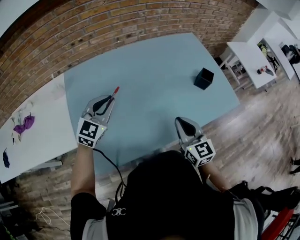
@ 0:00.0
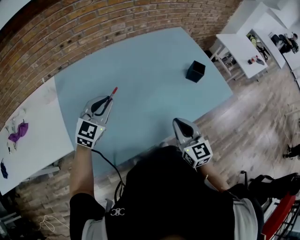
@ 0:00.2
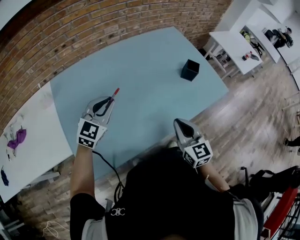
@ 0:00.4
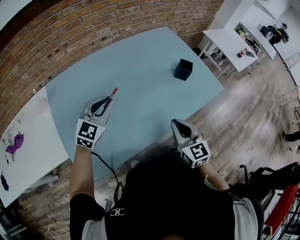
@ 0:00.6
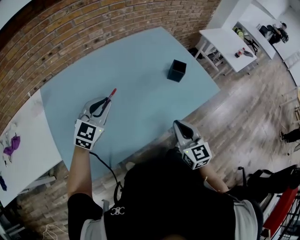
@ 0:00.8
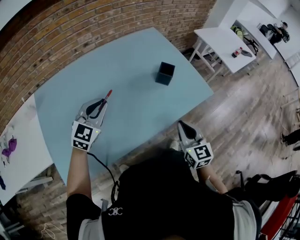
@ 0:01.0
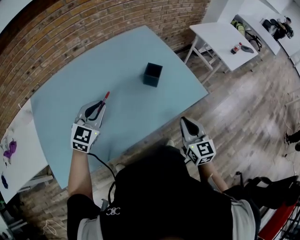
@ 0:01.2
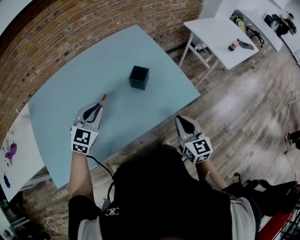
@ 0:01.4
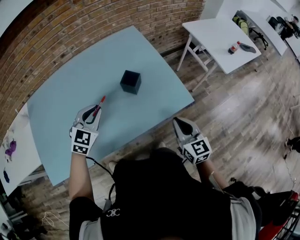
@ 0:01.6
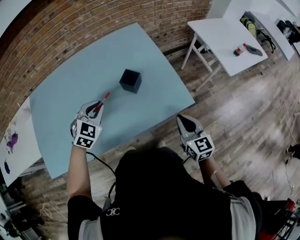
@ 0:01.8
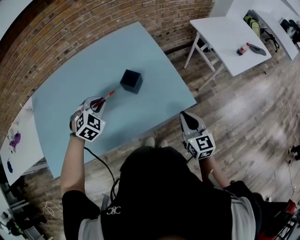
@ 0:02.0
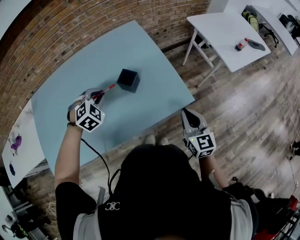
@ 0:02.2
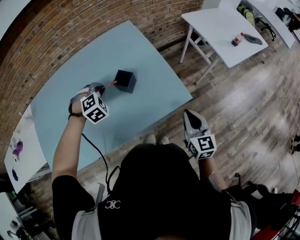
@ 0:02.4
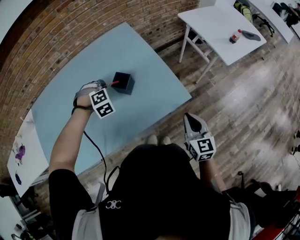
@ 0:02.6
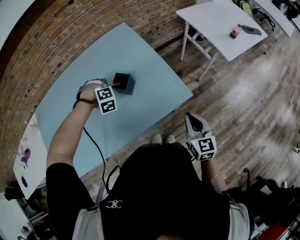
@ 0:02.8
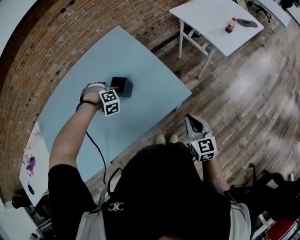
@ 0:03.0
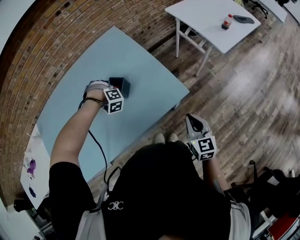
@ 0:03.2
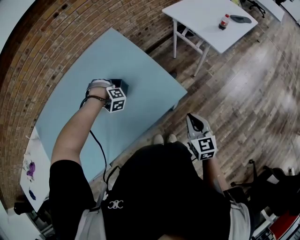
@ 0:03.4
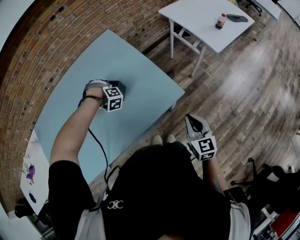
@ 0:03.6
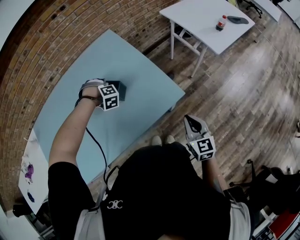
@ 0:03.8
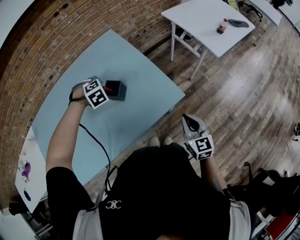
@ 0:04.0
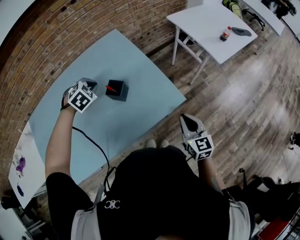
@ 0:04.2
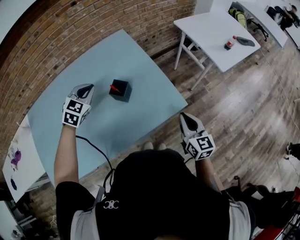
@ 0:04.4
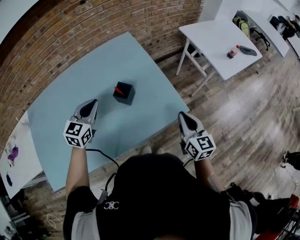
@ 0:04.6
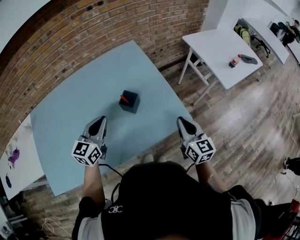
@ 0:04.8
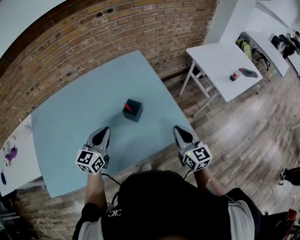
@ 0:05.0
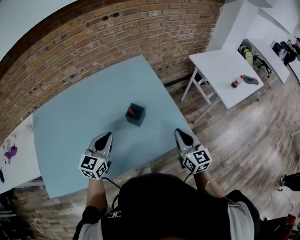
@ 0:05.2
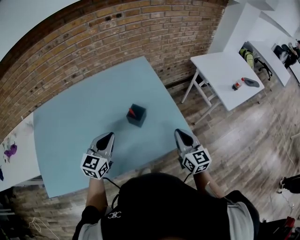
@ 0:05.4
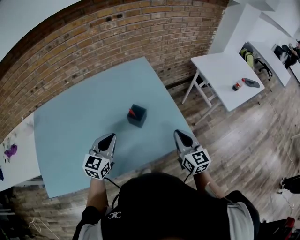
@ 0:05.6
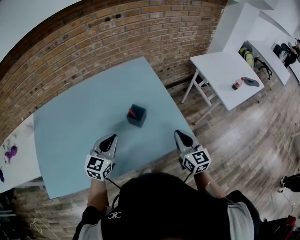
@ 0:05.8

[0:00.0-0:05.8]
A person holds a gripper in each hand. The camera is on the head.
0:00.0 to 0:01.4: The grippers both shift to the right by approximately 35 cm.
0:01.4 to 0:02.8: The right gripper changes place by roughly 15 cm; the left gripper ends up some 20 cm from where it was, and changes its angle by some 80 degrees.
0:02.8 to 0:04.4: The left gripper moves upward, approximately 10 cm, and swivels about 70 degrees.
0:04.4 to 0:05.8: The right gripper is displaced to the left and forward by approximately 10 cm, while the left gripper travels backward by about 15 cm, and changes its angle by approximately 30 degrees.

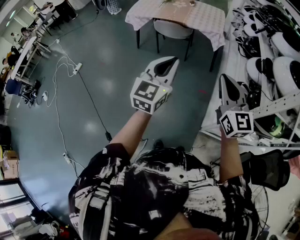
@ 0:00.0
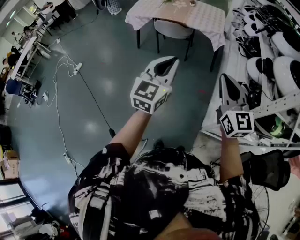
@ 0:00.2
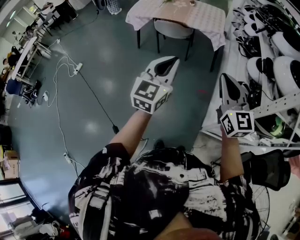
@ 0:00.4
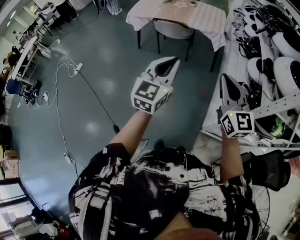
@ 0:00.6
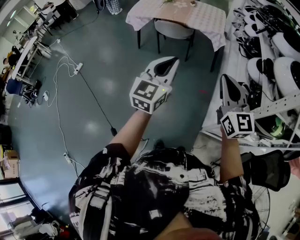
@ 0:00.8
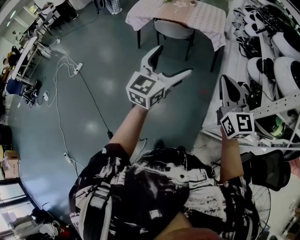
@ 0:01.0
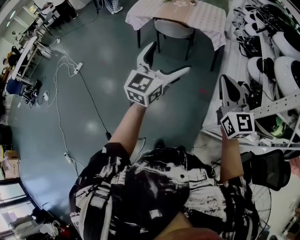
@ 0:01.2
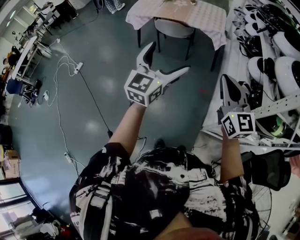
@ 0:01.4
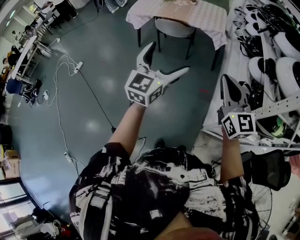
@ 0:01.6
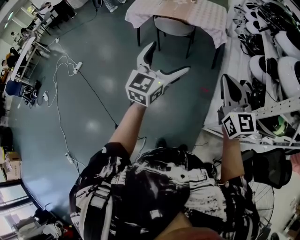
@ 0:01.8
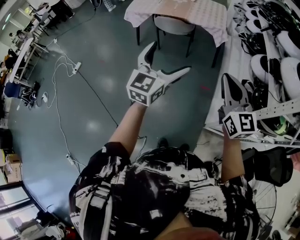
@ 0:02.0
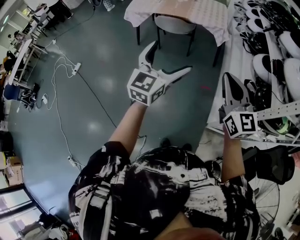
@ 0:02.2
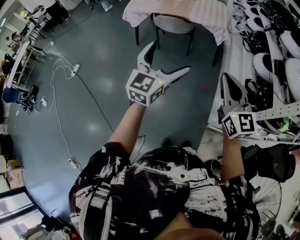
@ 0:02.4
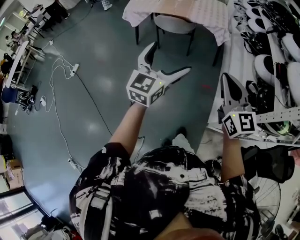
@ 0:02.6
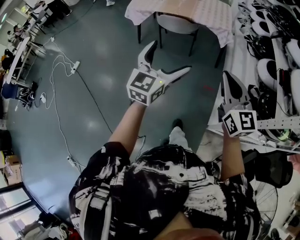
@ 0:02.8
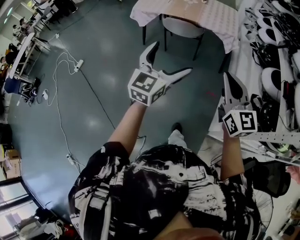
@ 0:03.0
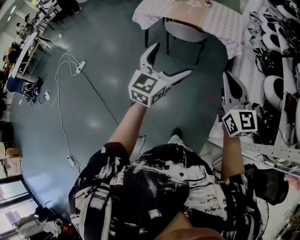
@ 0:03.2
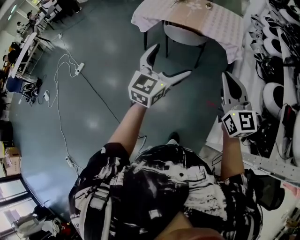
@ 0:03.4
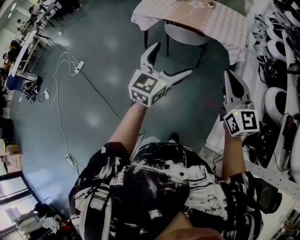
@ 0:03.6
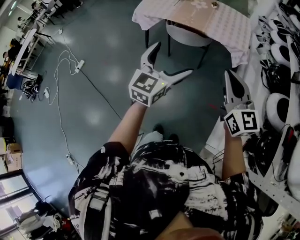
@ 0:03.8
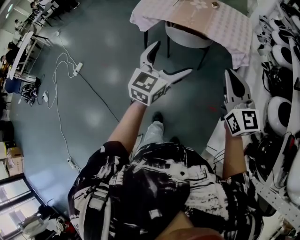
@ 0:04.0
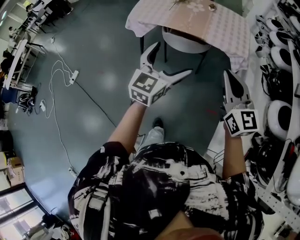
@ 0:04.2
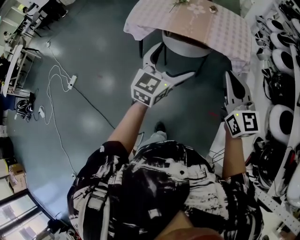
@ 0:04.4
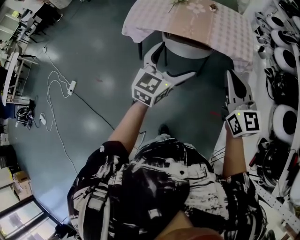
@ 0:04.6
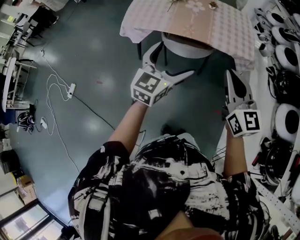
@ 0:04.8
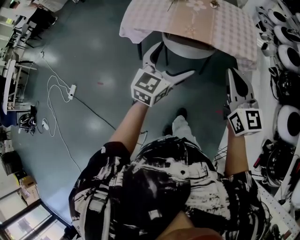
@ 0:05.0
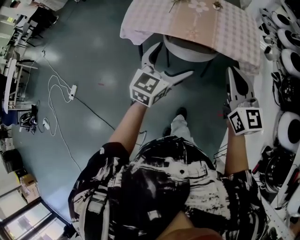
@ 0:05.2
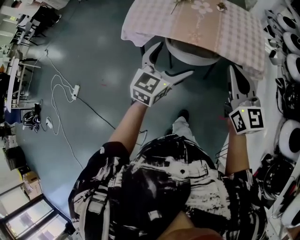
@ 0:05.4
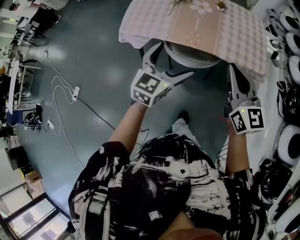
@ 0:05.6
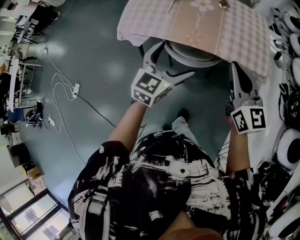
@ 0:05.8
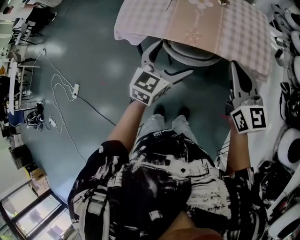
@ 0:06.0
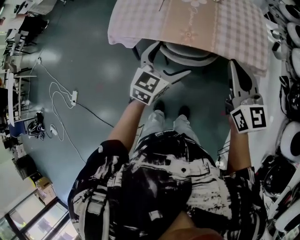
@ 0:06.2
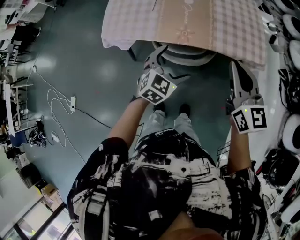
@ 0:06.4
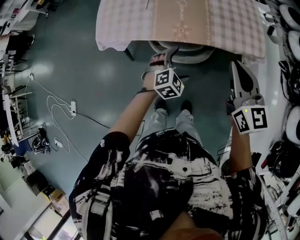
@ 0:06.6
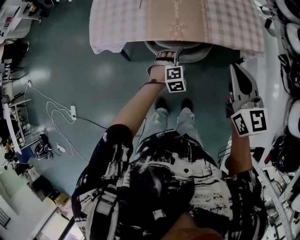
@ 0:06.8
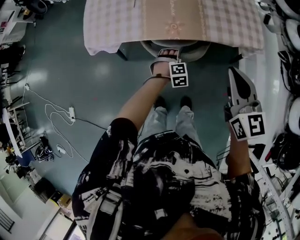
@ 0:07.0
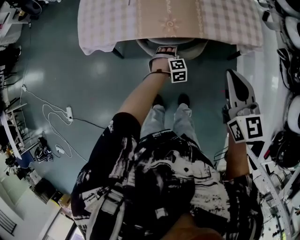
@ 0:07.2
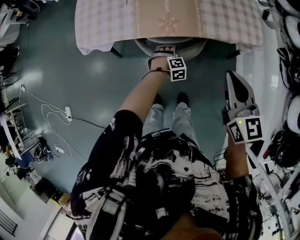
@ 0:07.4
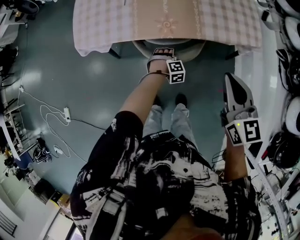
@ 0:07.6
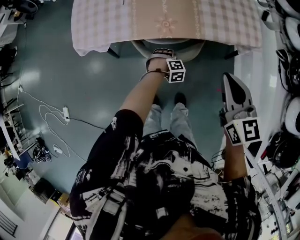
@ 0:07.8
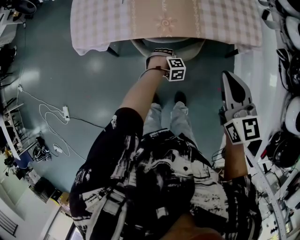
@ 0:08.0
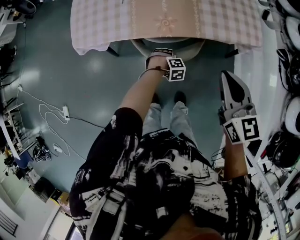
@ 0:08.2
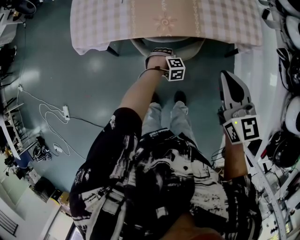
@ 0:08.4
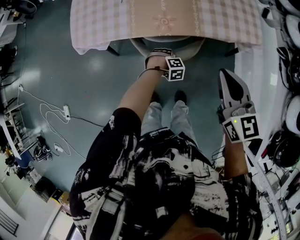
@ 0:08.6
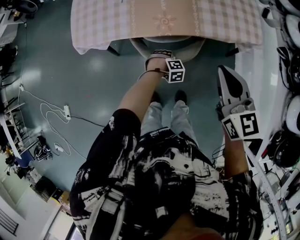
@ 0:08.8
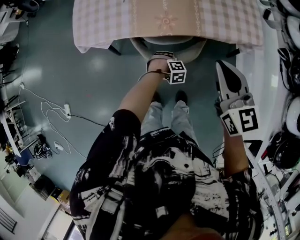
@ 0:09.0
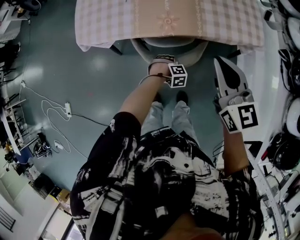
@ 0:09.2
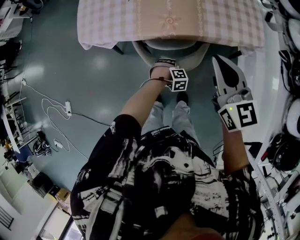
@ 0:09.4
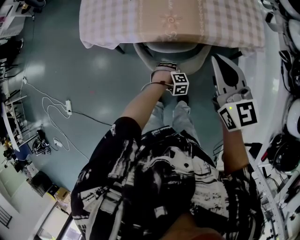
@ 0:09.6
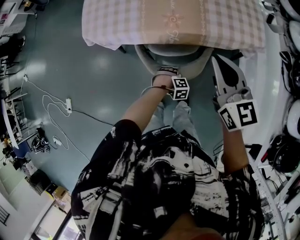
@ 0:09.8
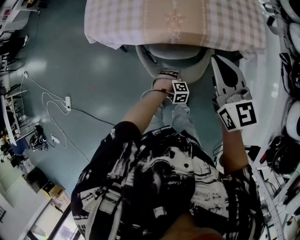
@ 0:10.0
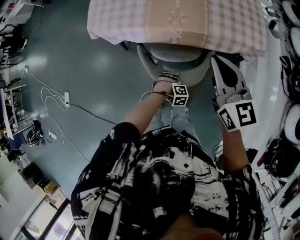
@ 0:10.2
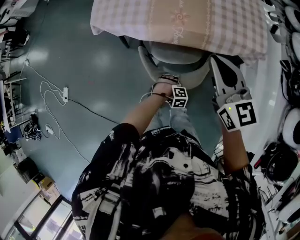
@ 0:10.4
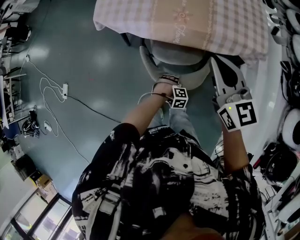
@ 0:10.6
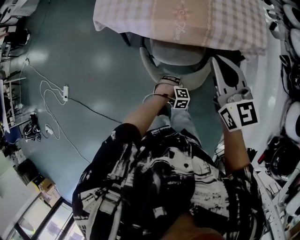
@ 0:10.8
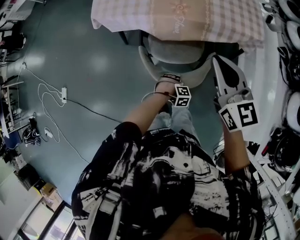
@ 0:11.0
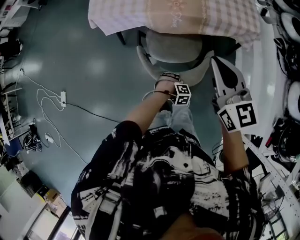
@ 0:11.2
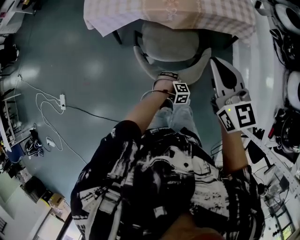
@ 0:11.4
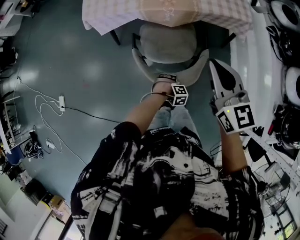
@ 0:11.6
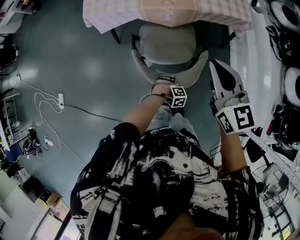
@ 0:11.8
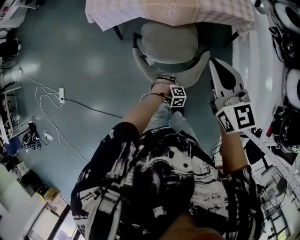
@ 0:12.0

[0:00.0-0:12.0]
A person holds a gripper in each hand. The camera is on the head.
0:00.0 to 0:01.6: The left gripper opens.
0:01.6 to 0:03.0: Both grippers travel together forward and to the left, approximately 15 cm.
0:03.0 to 0:04.4: Both grippers move forward, roughly 35 cm.
0:04.4 to 0:06.0: The two grippers go roughly 30 cm forward.
0:06.0 to 0:07.6: The right gripper heads downward, covering roughly 10 cm, and turns by some 20 degrees. Meanwhile the left gripper travels downward by approximately 40 cm, tips its fingers downward by roughly 50 degrees, and closes its fingers.
0:07.6 to 0:09.0: The left gripper closes up.
0:09.0 to 0:10.4: The right gripper moves approximately 10 cm; the left gripper ends up roughly 20 cm from where it was.
0:10.4 to 0:12.0: The right gripper moves about 20 cm. The left gripper moves some 20 cm.

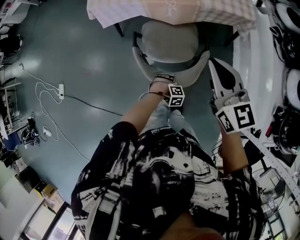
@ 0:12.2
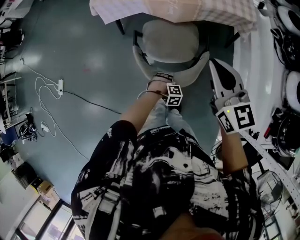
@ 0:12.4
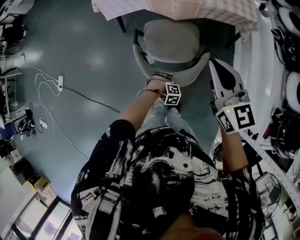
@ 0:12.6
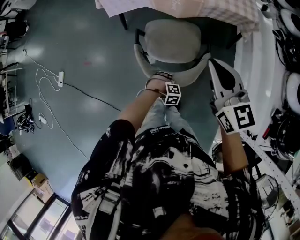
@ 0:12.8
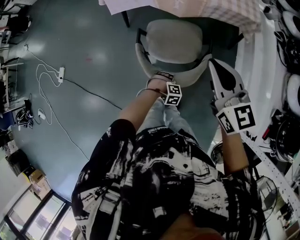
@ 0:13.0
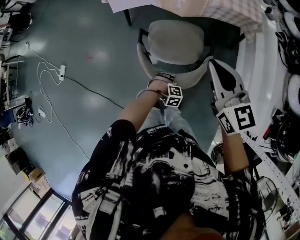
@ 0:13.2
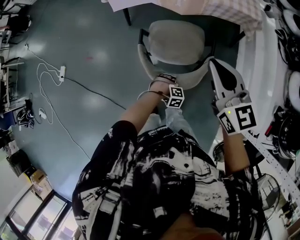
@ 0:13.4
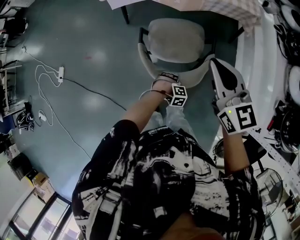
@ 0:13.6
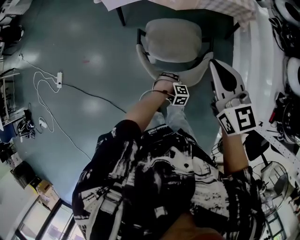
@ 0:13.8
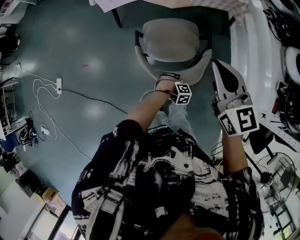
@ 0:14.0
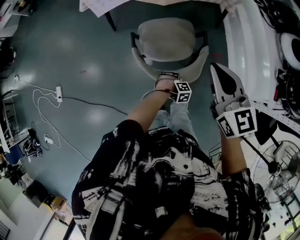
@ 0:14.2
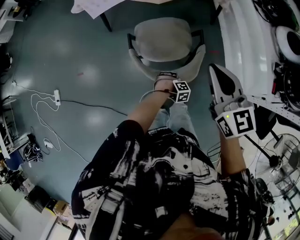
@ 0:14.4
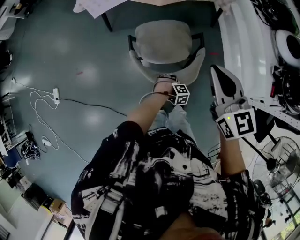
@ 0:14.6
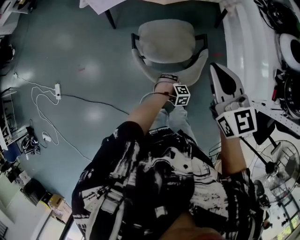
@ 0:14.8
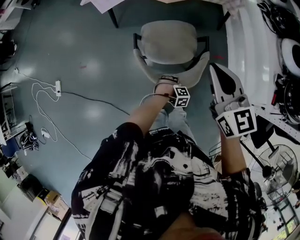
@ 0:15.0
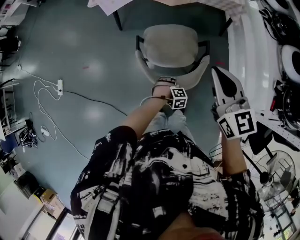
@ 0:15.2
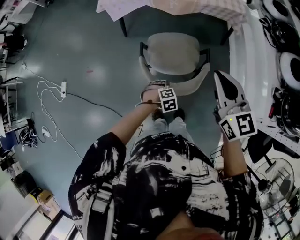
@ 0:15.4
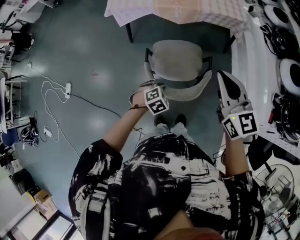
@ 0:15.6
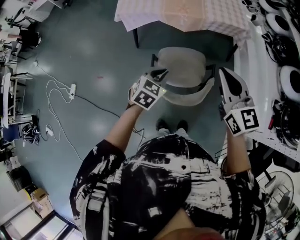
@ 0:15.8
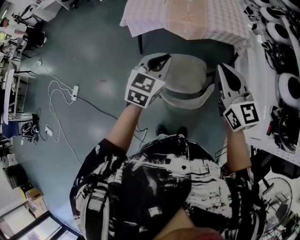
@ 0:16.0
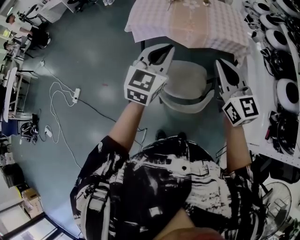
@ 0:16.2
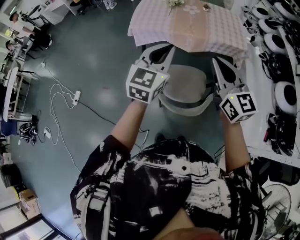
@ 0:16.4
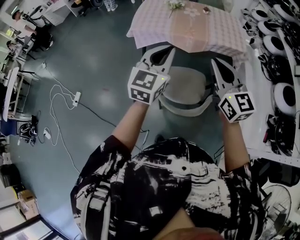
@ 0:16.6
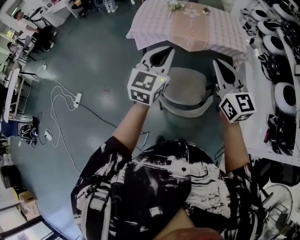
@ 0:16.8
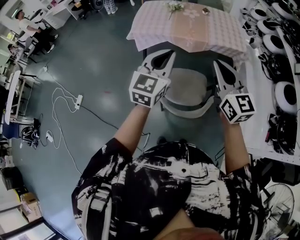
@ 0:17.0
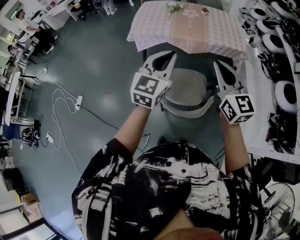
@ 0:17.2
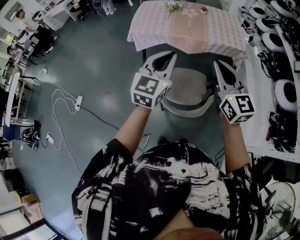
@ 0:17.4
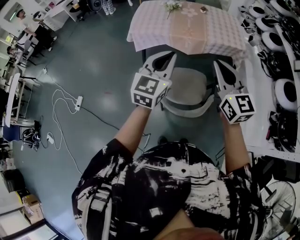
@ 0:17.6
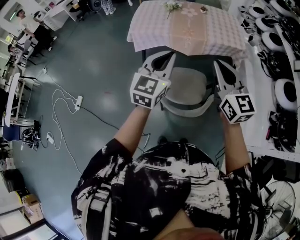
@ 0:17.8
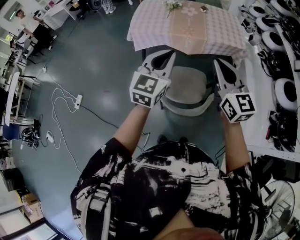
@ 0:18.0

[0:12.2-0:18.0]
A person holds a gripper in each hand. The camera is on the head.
0:12.2 to 0:13.6: The right gripper changes place by about 10 cm. Meanwhile the left gripper moves about 10 cm.
0:13.6 to 0:15.0: The right gripper ends up some 10 cm from where it was. Meanwhile the left gripper shifts by about 10 cm.
0:15.0 to 0:16.6: The left gripper moves upward, about 60 cm, and tips its fingers upward by about 80 degrees; the right gripper travels upward by about 15 cm.
0:16.6 to 0:18.0: The grippers make only small movements.
